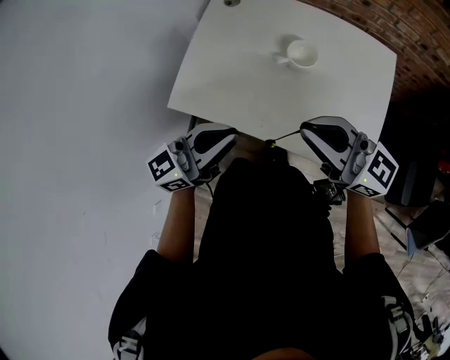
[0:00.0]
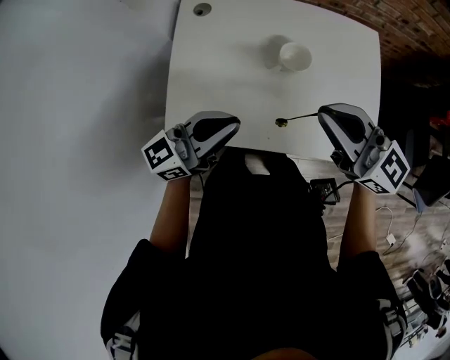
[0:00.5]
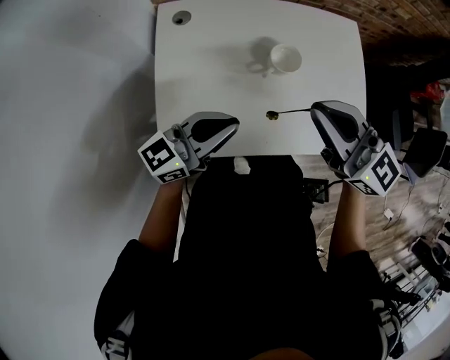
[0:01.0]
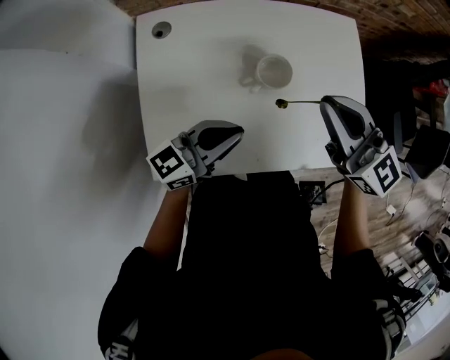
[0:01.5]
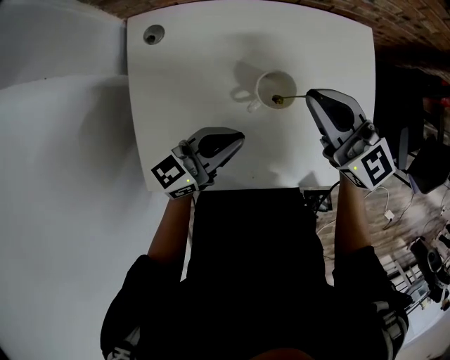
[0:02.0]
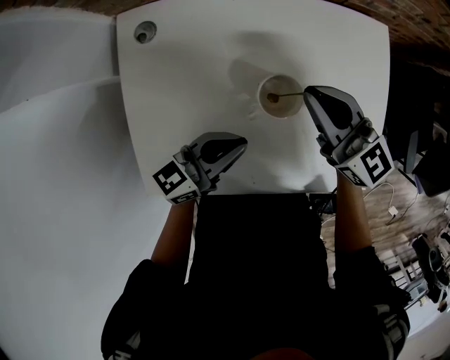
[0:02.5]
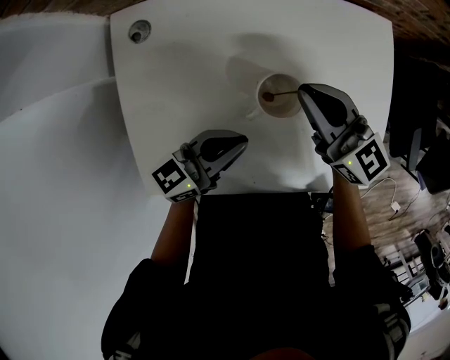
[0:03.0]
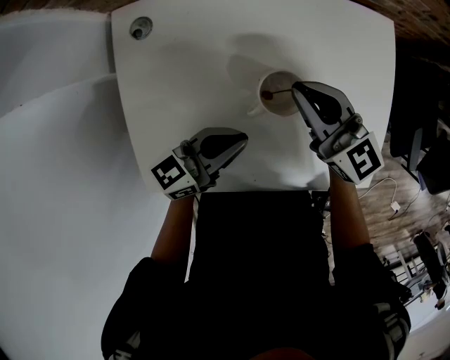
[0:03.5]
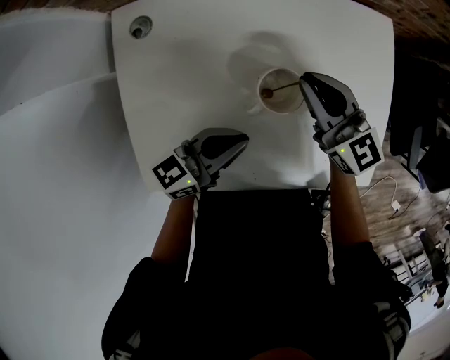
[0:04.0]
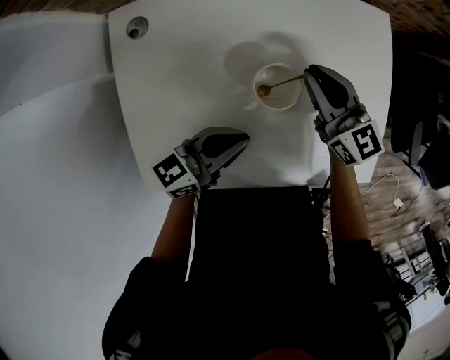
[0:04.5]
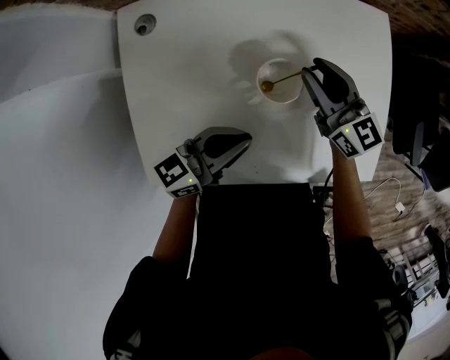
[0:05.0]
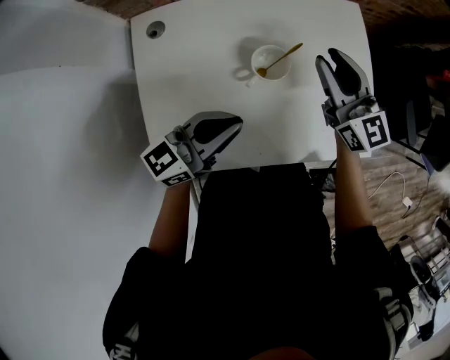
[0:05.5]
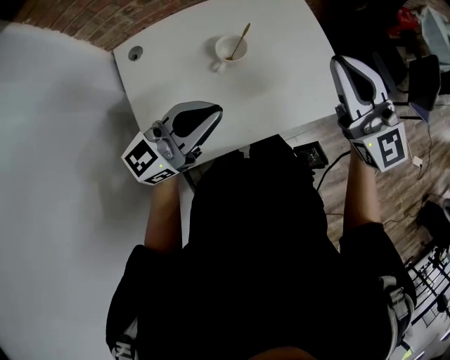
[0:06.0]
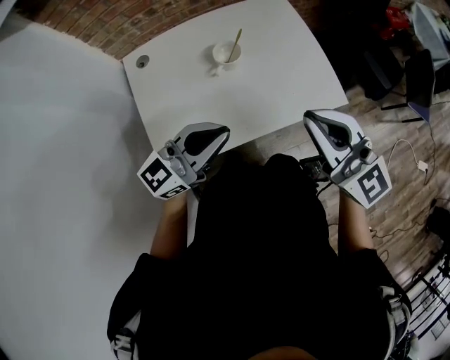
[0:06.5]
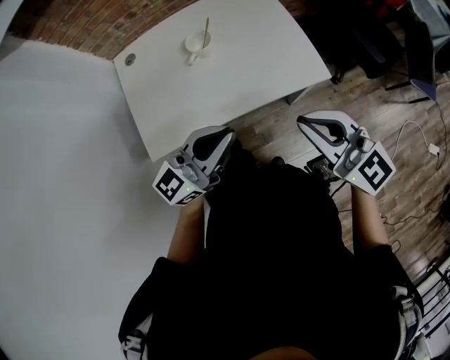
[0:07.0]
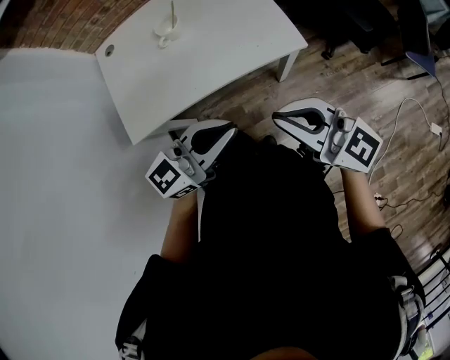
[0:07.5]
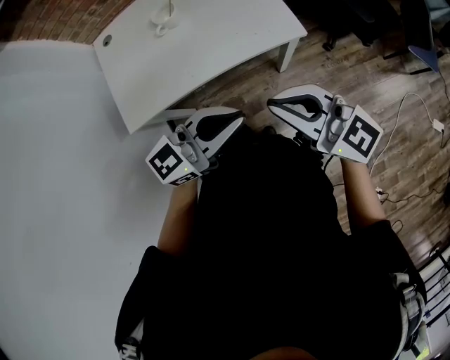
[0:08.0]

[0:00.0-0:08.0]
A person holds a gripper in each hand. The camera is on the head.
0:00.0 to 0:02.0: The left gripper ends up roughly 25 cm from where it was, and swivels about 30 degrees, while the right gripper shifts by some 25 cm, and changes its angle by some 40 degrees.
0:02.0 to 0:04.0: The left gripper travels downward by approximately 5 cm. The right gripper heads downward, covering about 10 cm.
0:04.0 to 0:06.0: The right gripper heads upward, backward and to the right, covering some 35 cm, swivels some 40 degrees, and opens, then closes once more. The left gripper moves upward and backward, some 25 cm, and changes its angle by about 30 degrees.
0:06.0 to 0:08.0: The left gripper moves some 35 cm. Meanwhile the right gripper changes place by approximately 30 cm, and rotates about 40 degrees.

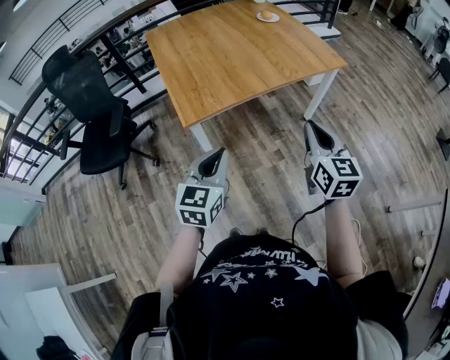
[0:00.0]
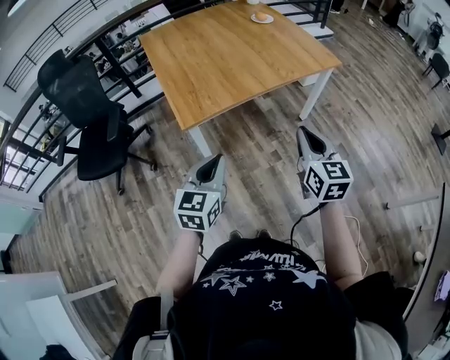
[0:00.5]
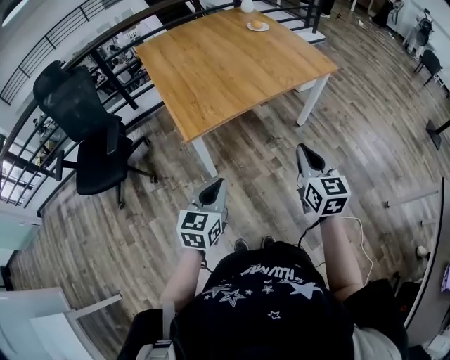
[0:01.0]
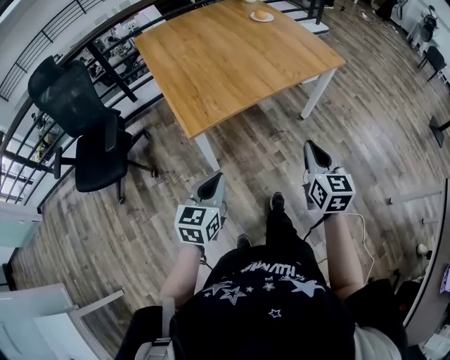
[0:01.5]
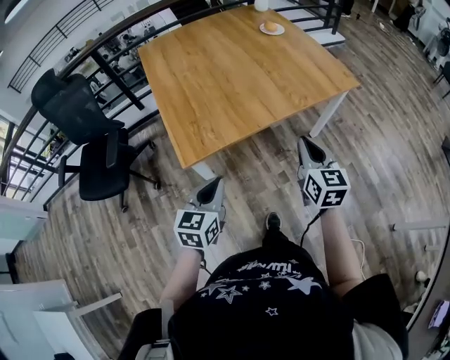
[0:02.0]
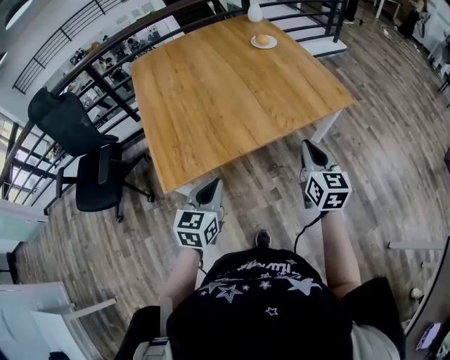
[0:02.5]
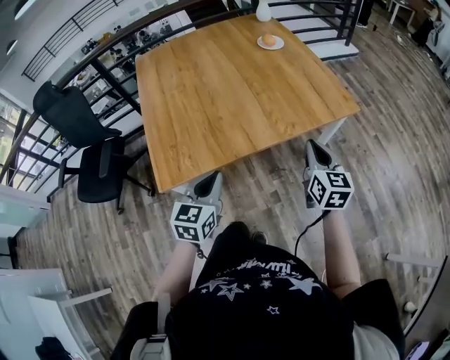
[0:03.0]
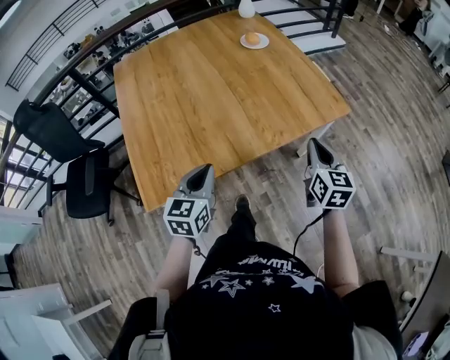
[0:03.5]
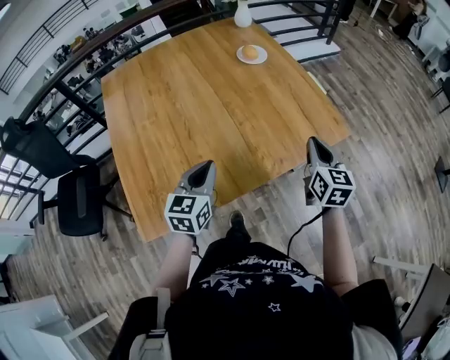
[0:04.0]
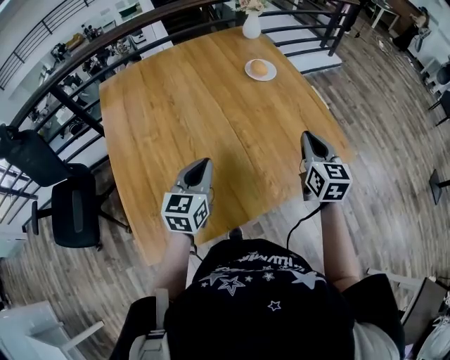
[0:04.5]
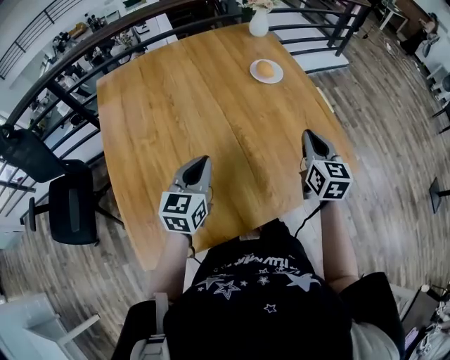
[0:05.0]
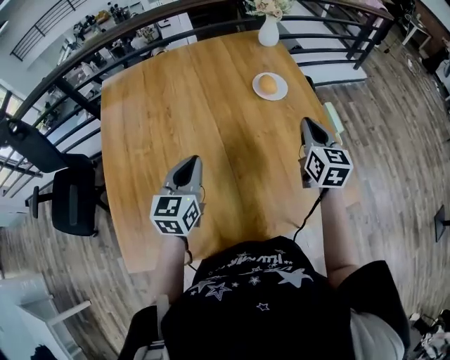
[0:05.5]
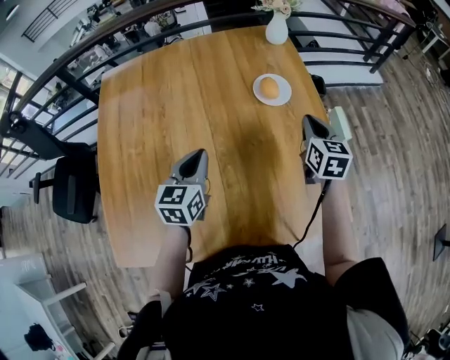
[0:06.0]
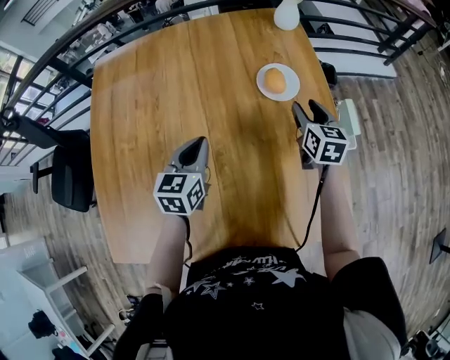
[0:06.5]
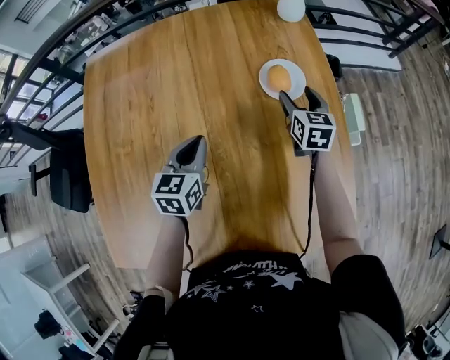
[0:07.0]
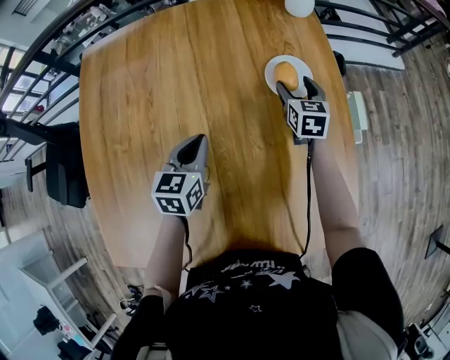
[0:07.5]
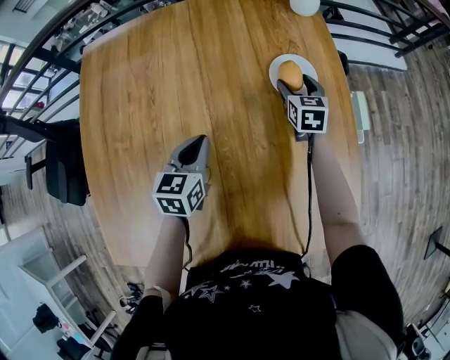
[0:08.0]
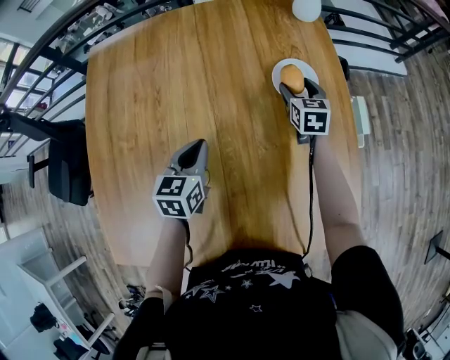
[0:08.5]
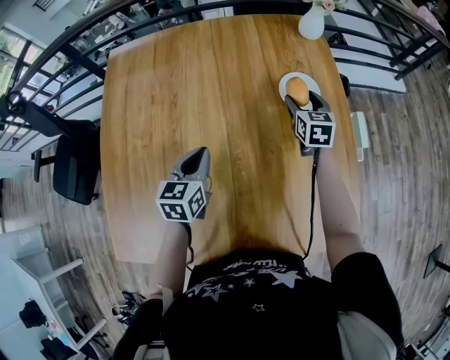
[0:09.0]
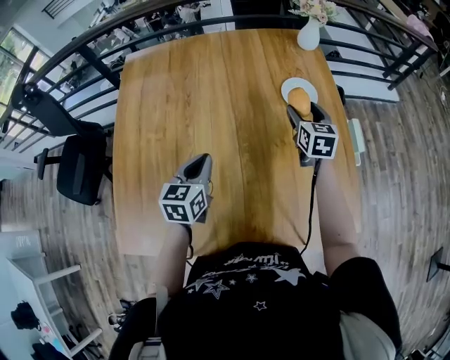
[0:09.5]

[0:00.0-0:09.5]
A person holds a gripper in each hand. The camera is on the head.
0:00.0 to 0:02.0: Both grippers move forward and downward, roughly 15 cm.
0:02.0 to 0:04.0: The left gripper shifts roughly 35 cm forward. The right gripper shifts about 35 cm forward and to the right.
0:04.0 to 0:05.5: Both grippers travel together forward, some 25 cm.
0:05.5 to 0:07.5: The right gripper moves forward and downward, about 30 cm, and opens up. The left gripper shifts approximately 20 cm forward and downward.
0:07.5 to 0:09.5: The left gripper heads backward, to the left and upward, covering approximately 15 cm; the right gripper heads backward and upward, covering approximately 15 cm.

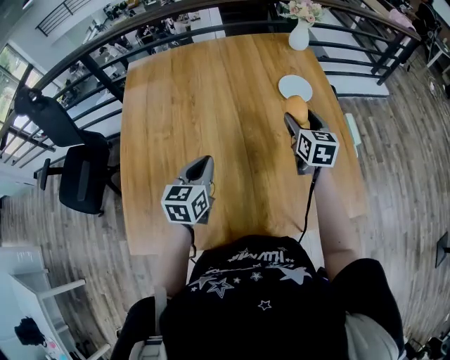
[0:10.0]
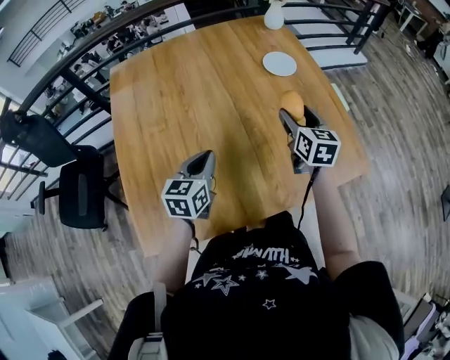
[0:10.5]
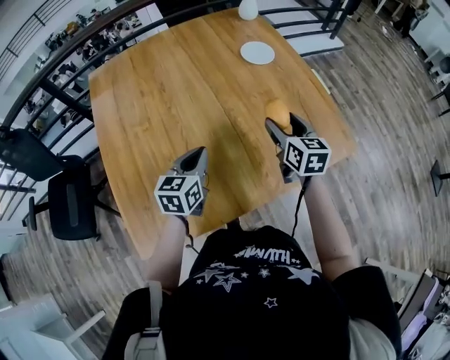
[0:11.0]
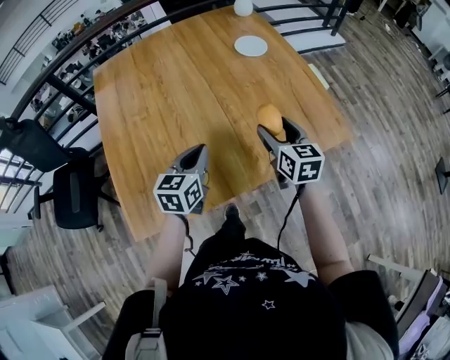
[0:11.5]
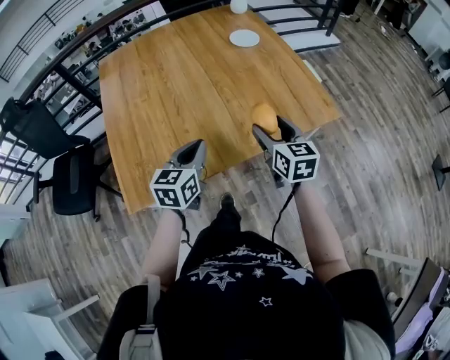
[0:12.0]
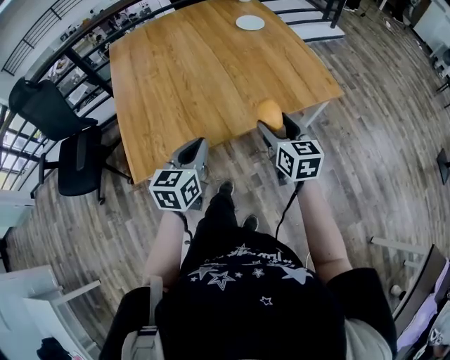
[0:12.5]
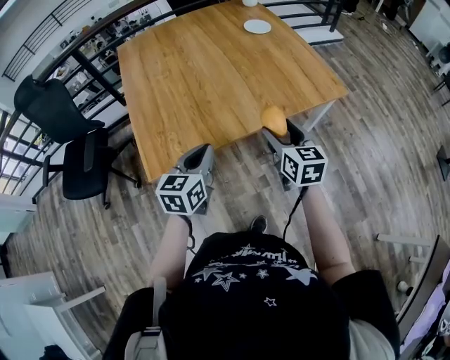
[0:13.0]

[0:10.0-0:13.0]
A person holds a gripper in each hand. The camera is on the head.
0:10.0 to 0:11.5: The left gripper moves backward and to the right, some 15 cm. The right gripper is displaced backward by approximately 25 cm.
0:11.5 to 0:13.0: Both grippers move backward, about 25 cm.

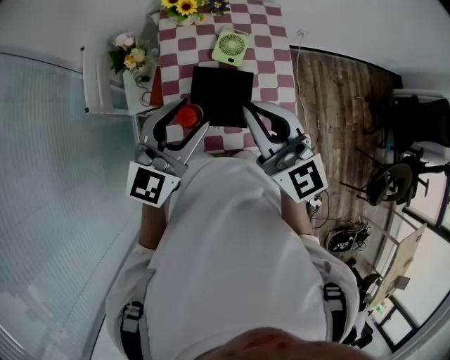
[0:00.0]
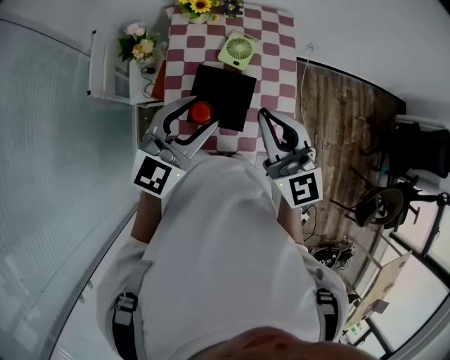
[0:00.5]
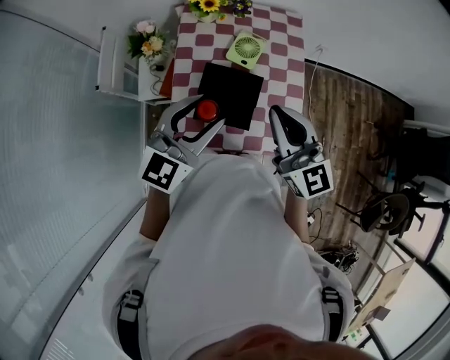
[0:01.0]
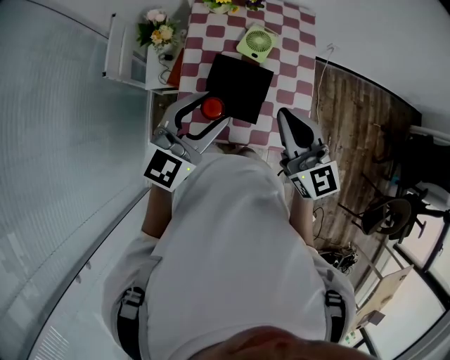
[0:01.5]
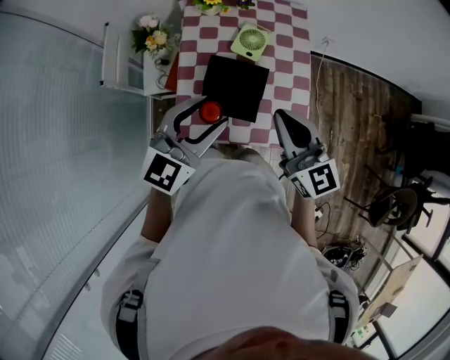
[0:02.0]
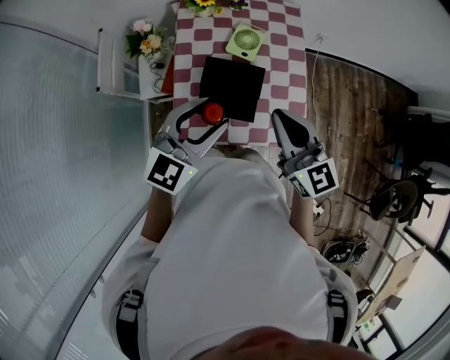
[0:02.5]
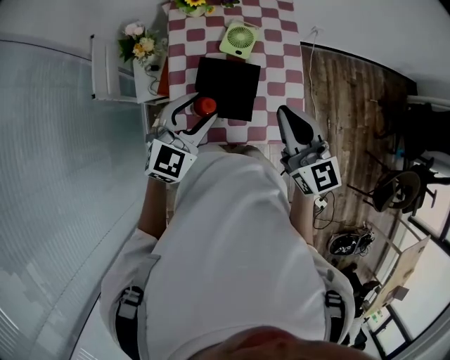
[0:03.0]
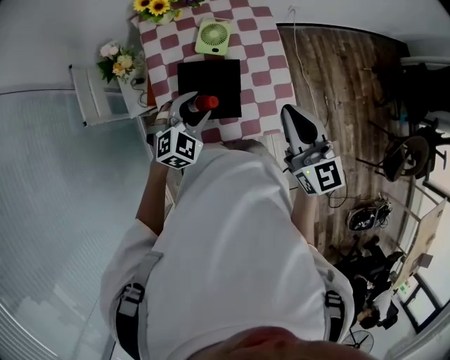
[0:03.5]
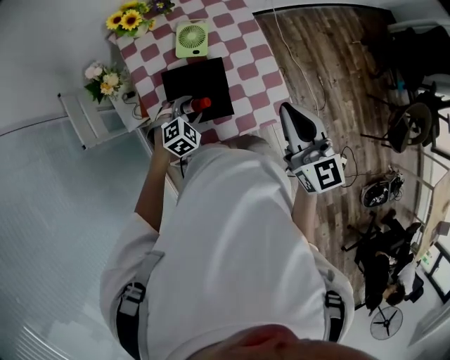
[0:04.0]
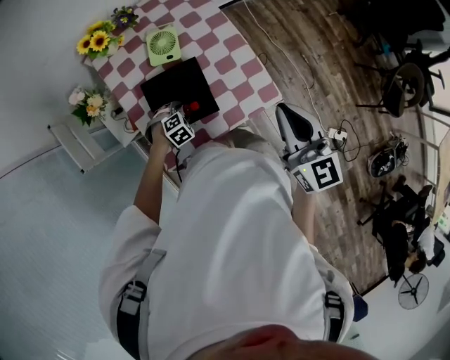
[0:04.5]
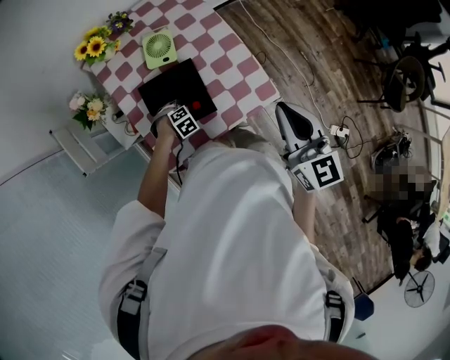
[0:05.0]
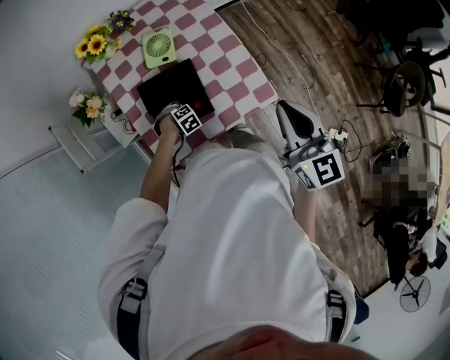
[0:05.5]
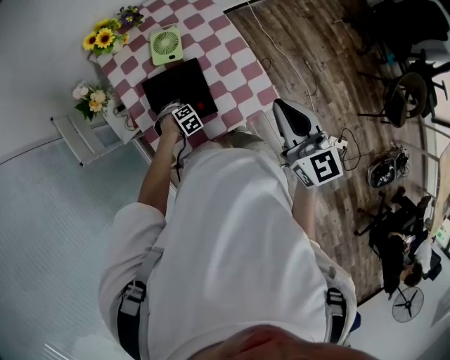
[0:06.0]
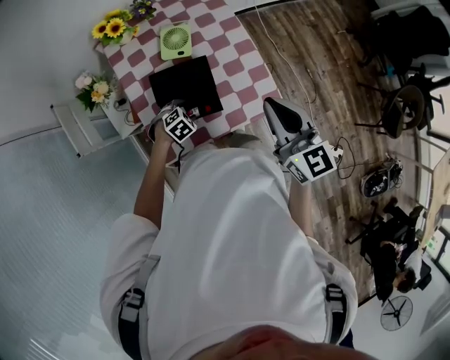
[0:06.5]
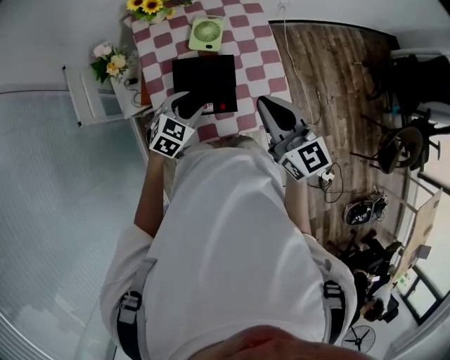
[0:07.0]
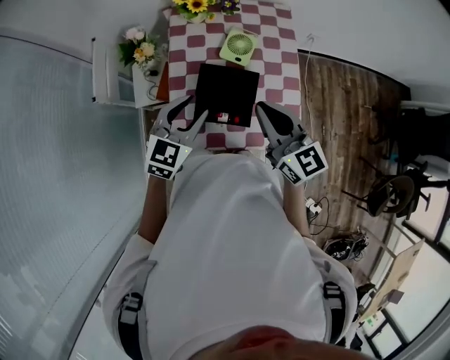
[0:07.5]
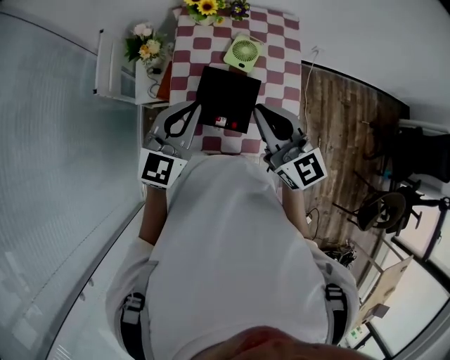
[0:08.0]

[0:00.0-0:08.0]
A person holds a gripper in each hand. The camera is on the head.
0:00.0 to 0:02.0: The left gripper changes place by roughly 5 cm. The right gripper heads to the right and downward, covering about 10 cm.
0:02.0 to 0:04.0: The right gripper is displaced to the right by some 10 cm, and swivels about 30 degrees. Meanwhile the left gripper shifts roughly 30 cm downward, and tilts its fingers some 50 degrees downward.
0:04.0 to 0:06.0: The left gripper shifts approximately 15 cm downward, and swivels approximately 30 degrees. Meanwhile the right gripper shifts by about 5 cm.
0:06.0 to 0:08.0: The left gripper is displaced upward by some 40 cm, points its fingers about 80 degrees further upward, and closes up. The right gripper shifts by approximately 20 cm, and changes its angle by about 40 degrees.
